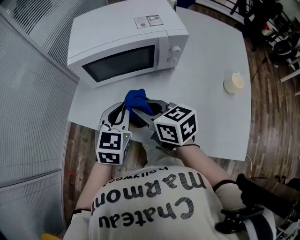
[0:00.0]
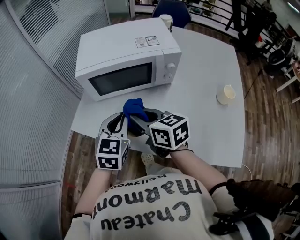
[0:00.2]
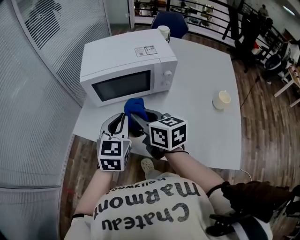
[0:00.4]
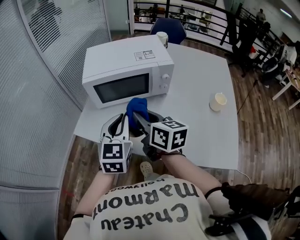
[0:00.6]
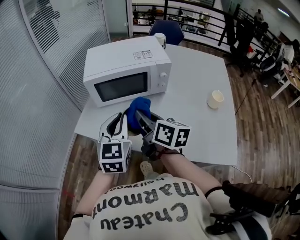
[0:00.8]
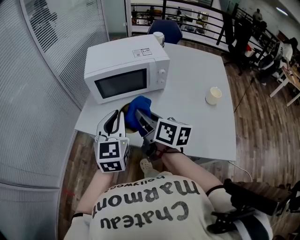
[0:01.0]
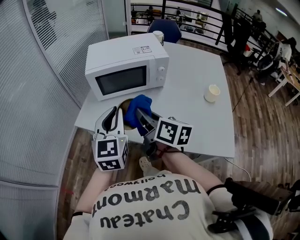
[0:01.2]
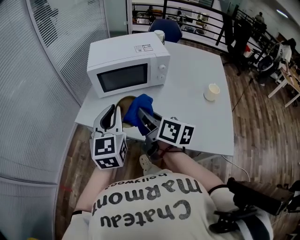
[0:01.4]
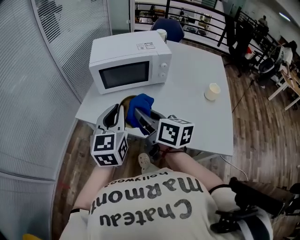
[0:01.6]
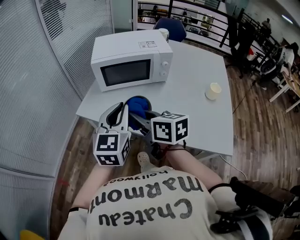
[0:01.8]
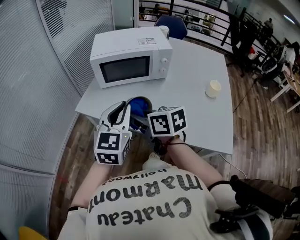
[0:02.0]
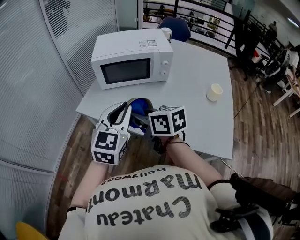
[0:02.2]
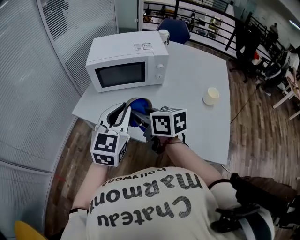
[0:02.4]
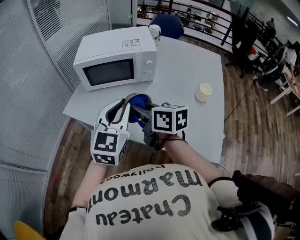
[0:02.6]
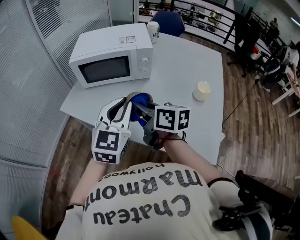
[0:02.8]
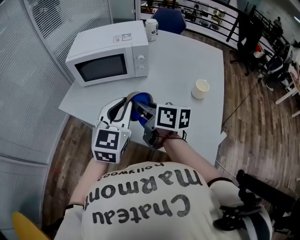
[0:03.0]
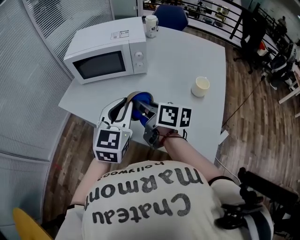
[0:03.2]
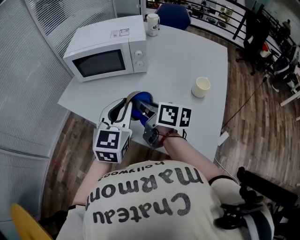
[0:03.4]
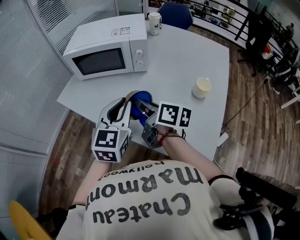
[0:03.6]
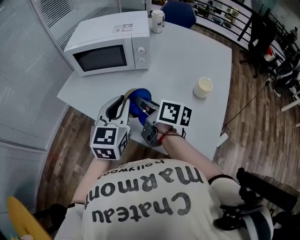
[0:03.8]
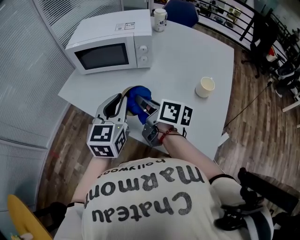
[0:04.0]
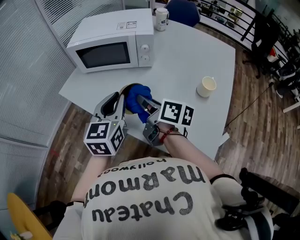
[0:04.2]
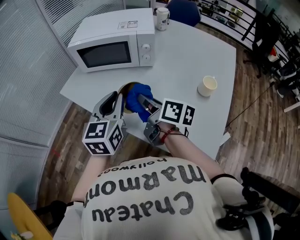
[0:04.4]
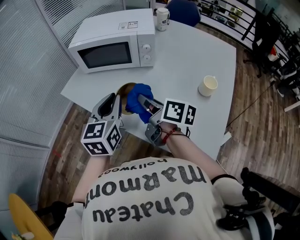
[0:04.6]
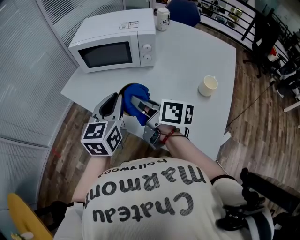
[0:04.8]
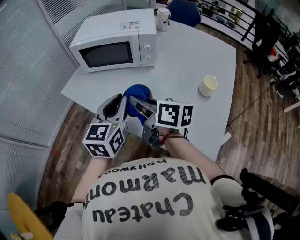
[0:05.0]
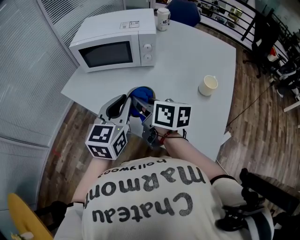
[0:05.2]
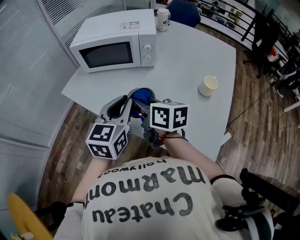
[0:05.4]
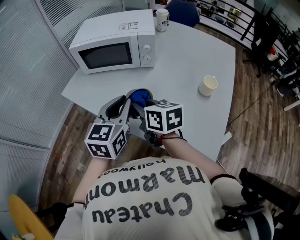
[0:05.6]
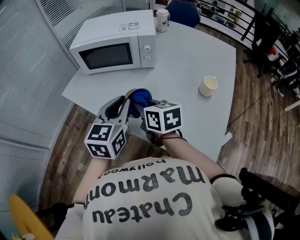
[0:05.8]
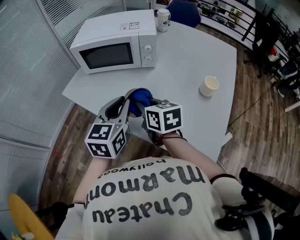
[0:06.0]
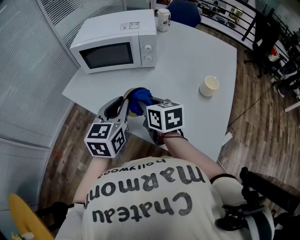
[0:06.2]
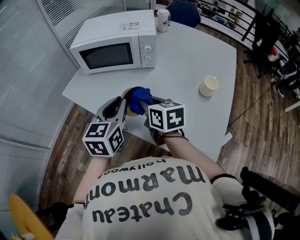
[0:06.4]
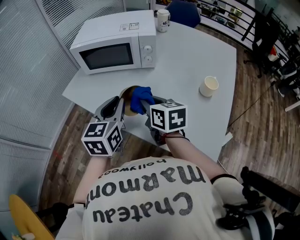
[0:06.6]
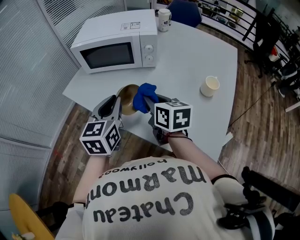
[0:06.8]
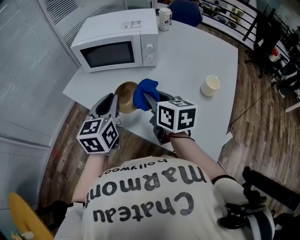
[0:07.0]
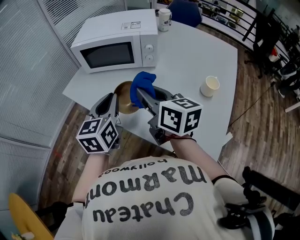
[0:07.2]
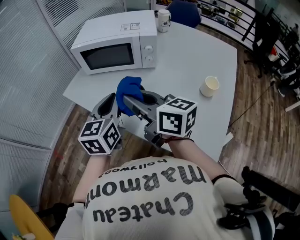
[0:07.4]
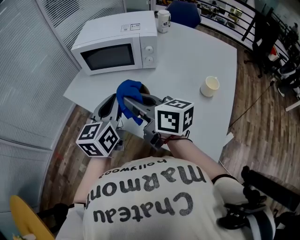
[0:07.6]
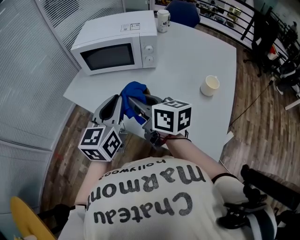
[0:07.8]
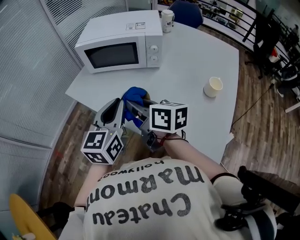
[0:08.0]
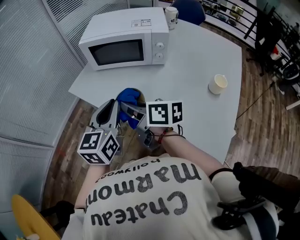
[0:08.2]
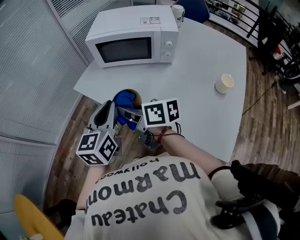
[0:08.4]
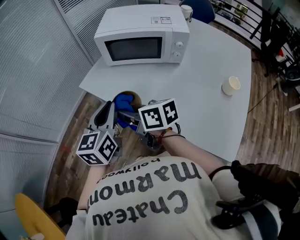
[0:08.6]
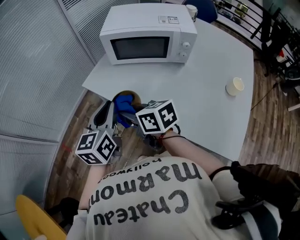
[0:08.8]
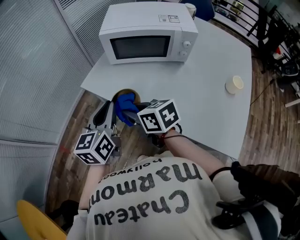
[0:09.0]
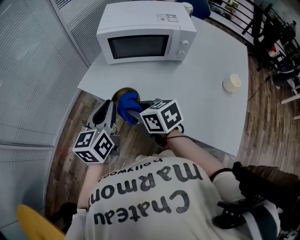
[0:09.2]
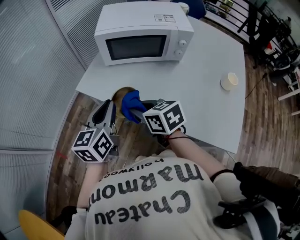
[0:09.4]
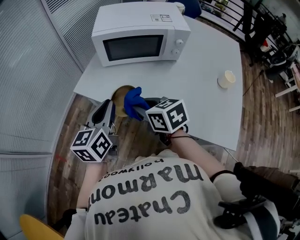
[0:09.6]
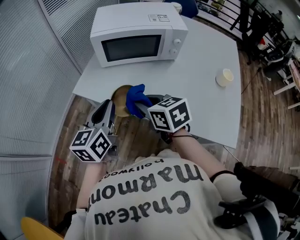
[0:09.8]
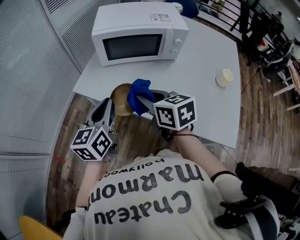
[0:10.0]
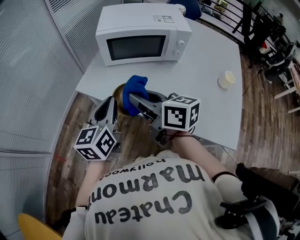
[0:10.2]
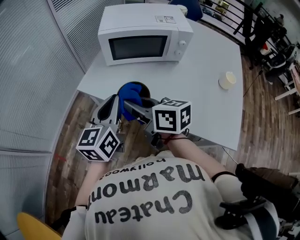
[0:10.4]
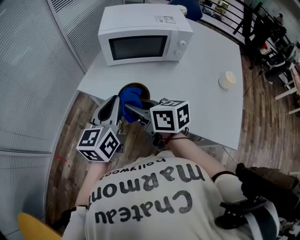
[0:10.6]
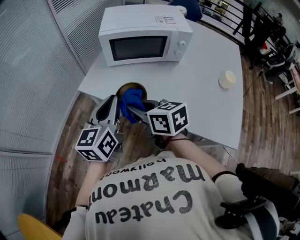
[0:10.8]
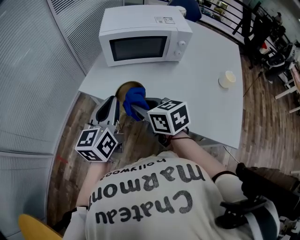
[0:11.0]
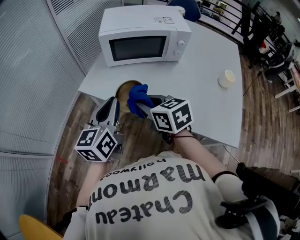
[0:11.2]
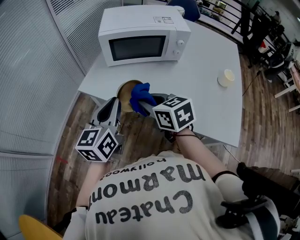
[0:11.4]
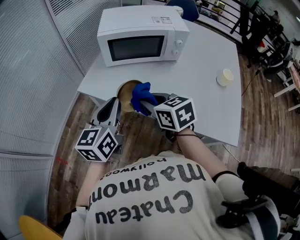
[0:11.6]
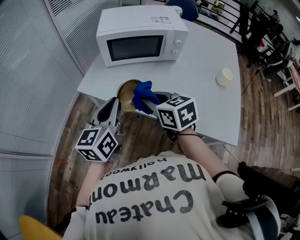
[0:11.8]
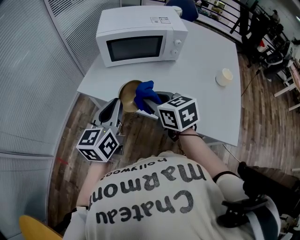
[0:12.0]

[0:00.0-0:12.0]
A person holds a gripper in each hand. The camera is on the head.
0.0 to 1.6 s: The left gripper goes roughly 15 cm upward and backward, and swivels roughly 20 degrees. The right gripper goes roughly 15 cm backward and upward, and changes its angle by about 20 degrees.
1.6 to 3.0 s: The grippers both shift to the right by roughly 15 cm.
3.0 to 4.4 s: The left gripper changes its angle by some 20 degrees, while the right gripper moves roughly 5 cm.
4.4 to 6.0 s: The right gripper changes its angle by some 40 degrees.
6.0 to 7.6 s: The right gripper is displaced upward by roughly 10 cm, and rotates about 30 degrees.
7.6 to 9.0 s: The left gripper travels to the left by roughly 20 cm; the right gripper goes some 20 cm to the left and downward, and turns by roughly 30 degrees.
9.0 to 10.4 s: The right gripper moves upward, approximately 5 cm, and turns by about 20 degrees.
10.4 to 12.0 s: The right gripper heads to the right, covering approximately 10 cm, and turns by about 30 degrees.

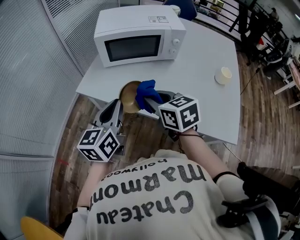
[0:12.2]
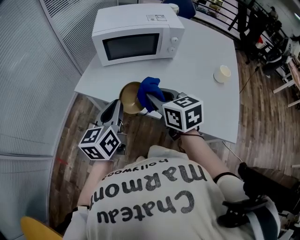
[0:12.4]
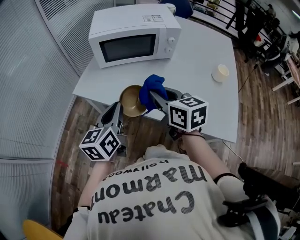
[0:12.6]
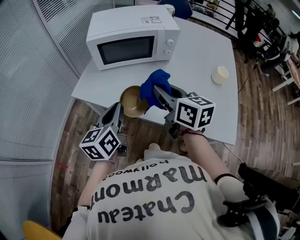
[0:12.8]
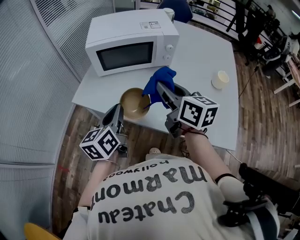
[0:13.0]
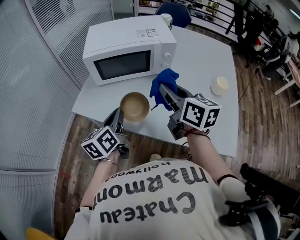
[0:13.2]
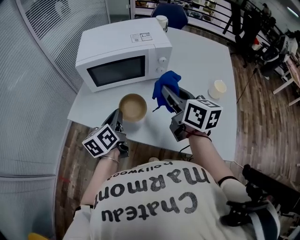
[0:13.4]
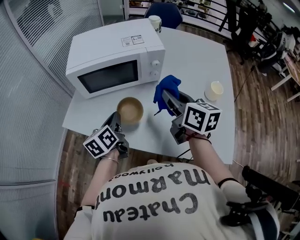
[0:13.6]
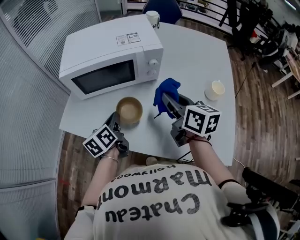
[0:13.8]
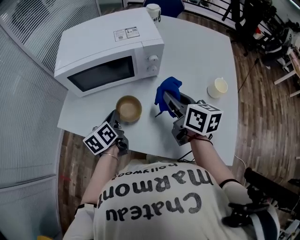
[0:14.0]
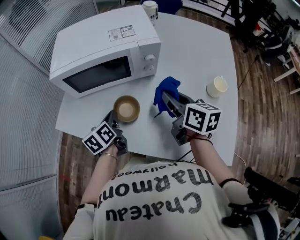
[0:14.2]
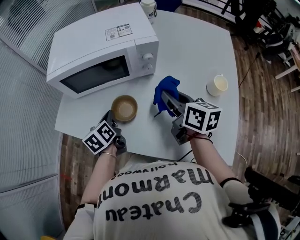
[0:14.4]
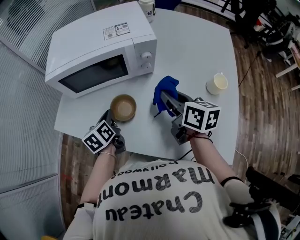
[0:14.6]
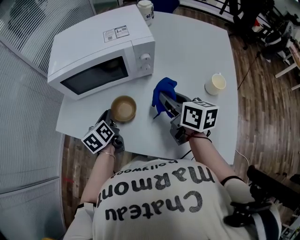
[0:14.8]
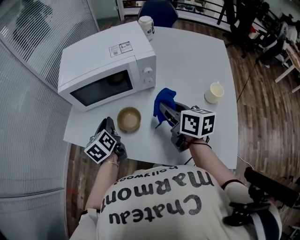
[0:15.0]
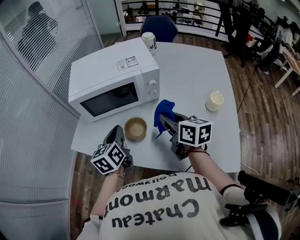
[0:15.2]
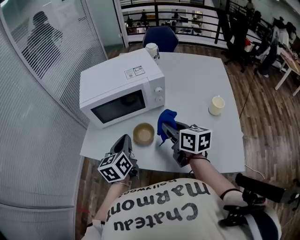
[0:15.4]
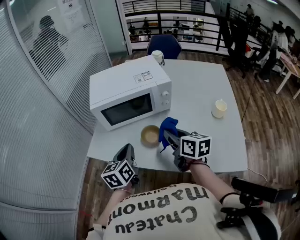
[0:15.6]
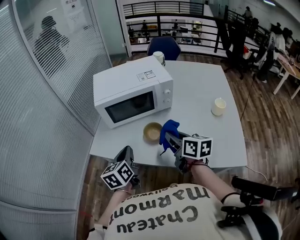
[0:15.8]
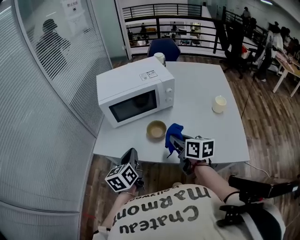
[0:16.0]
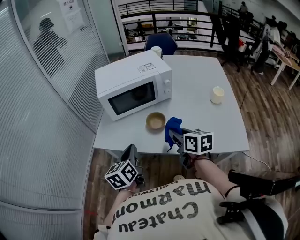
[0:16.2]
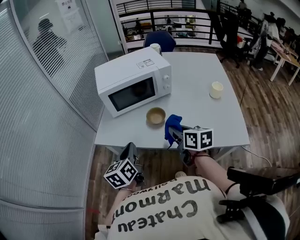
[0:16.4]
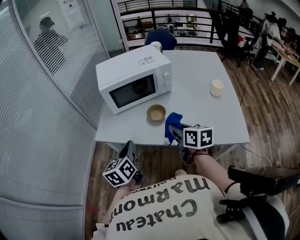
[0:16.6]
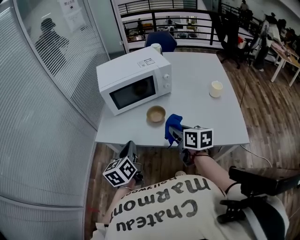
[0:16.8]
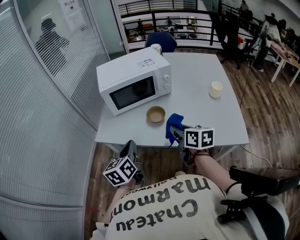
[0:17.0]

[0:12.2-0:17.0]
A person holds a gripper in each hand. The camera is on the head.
12.2 to 13.8 s: The right gripper heads to the right and forward, covering roughly 25 cm, and turns by some 30 degrees, while the left gripper shifts about 20 cm forward, downward and to the right, and changes its angle by roughly 30 degrees.
13.8 to 15.4 s: The left gripper travels upward by about 10 cm, and rotates approximately 20 degrees.
15.4 to 17.0 s: Both grippers travel together backward and to the left, approximately 15 cm.

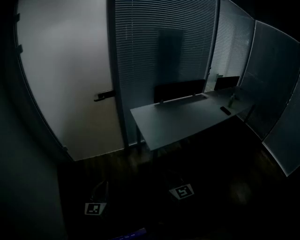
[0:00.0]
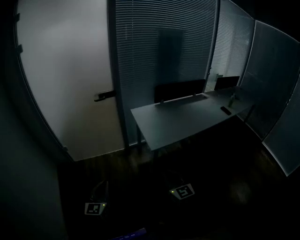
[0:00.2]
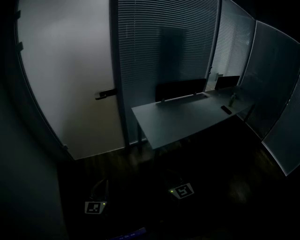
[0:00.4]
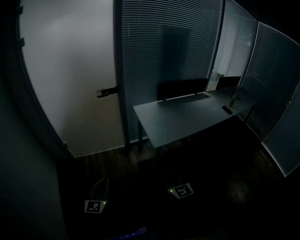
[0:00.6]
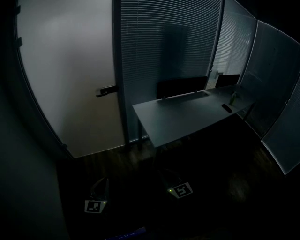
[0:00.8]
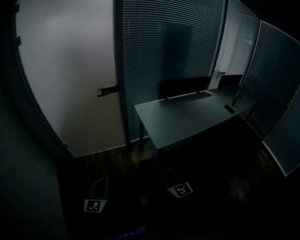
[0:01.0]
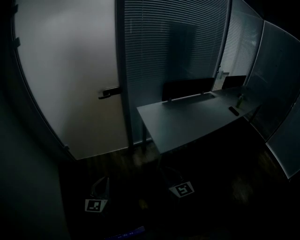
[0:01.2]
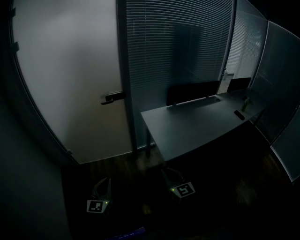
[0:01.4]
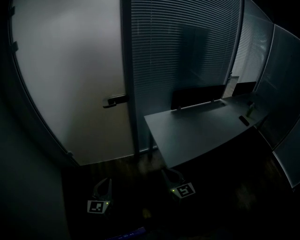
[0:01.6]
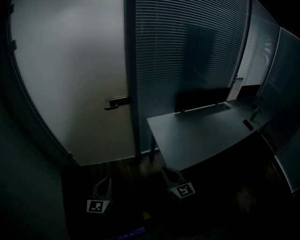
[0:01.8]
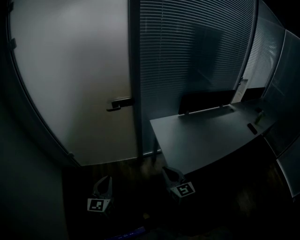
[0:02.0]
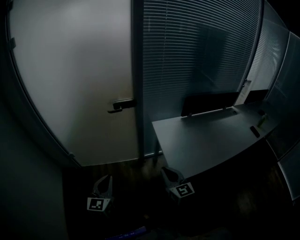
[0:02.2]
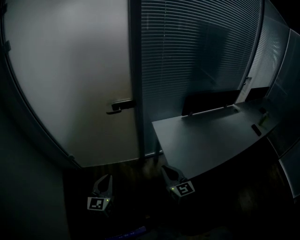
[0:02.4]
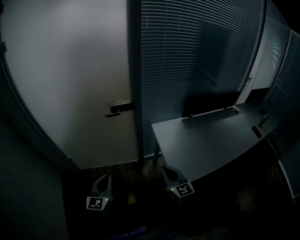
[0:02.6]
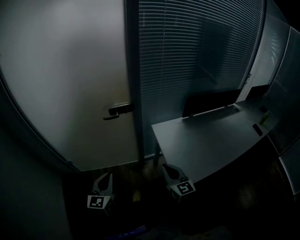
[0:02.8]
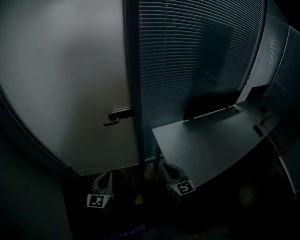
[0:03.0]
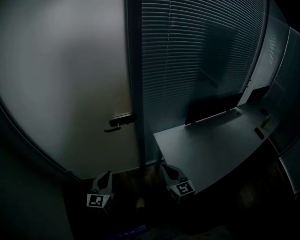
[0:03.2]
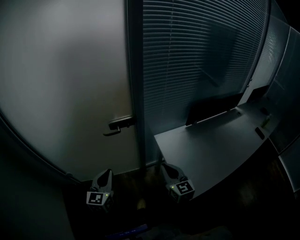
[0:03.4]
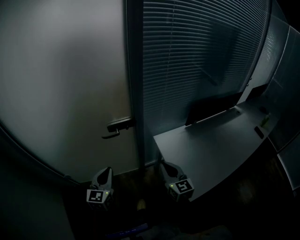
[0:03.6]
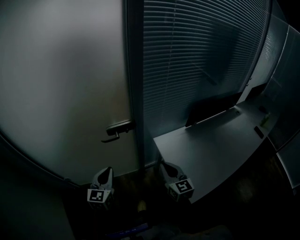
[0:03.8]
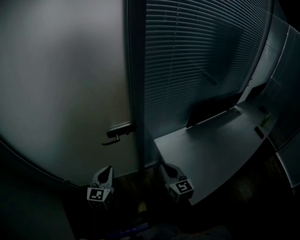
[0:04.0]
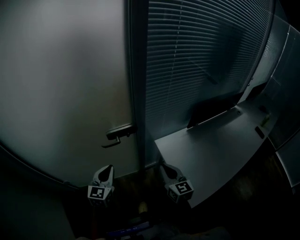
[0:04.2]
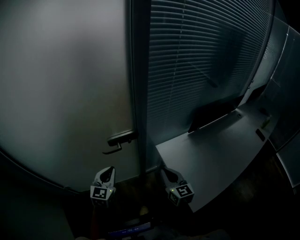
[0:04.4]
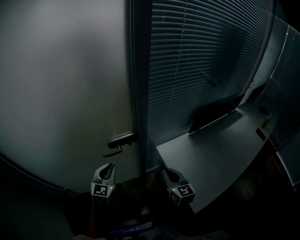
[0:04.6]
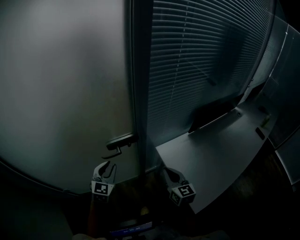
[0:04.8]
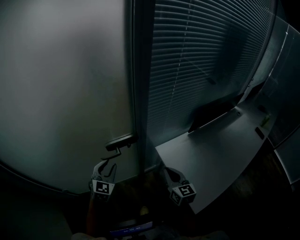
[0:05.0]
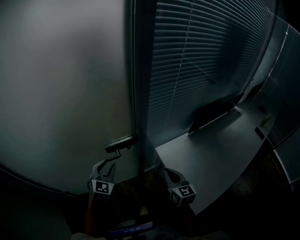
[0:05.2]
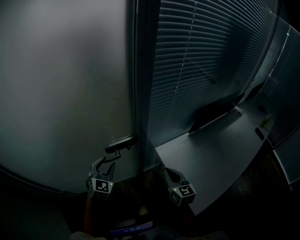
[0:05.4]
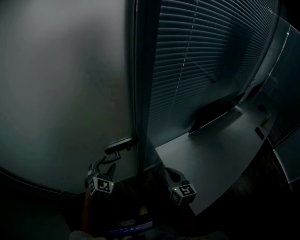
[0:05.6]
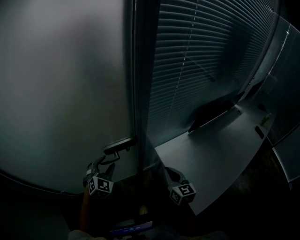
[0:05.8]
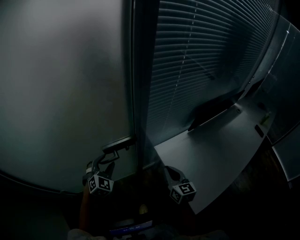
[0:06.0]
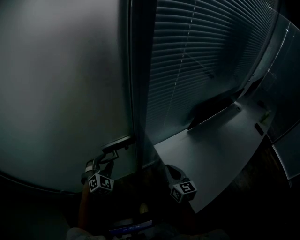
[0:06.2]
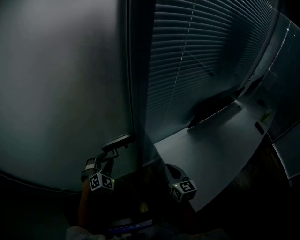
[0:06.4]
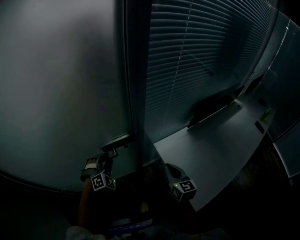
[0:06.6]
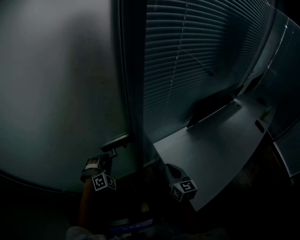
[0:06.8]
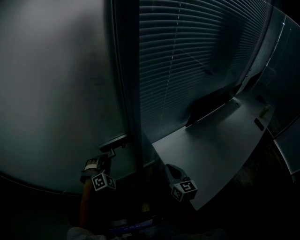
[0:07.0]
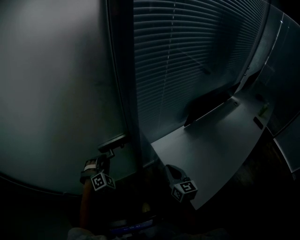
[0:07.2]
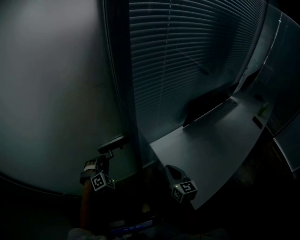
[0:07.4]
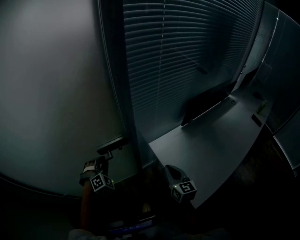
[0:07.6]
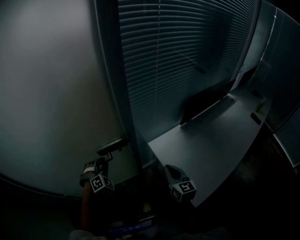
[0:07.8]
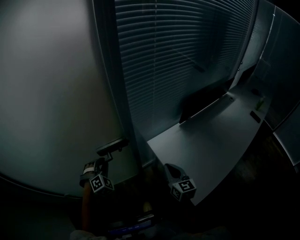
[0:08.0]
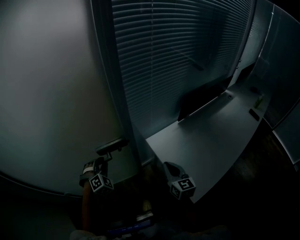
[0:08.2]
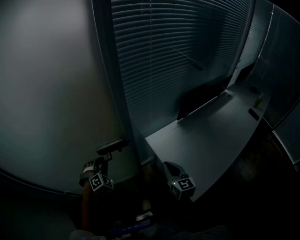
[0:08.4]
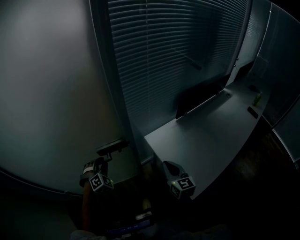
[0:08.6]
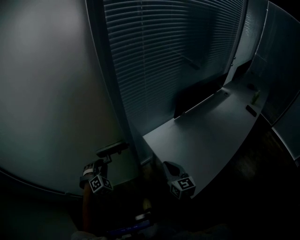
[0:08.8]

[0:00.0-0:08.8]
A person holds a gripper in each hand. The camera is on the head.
0.0 to 1.4 s: The right gripper heads forward and to the left, covering roughly 15 cm. The left gripper travels forward by some 15 cm.
1.4 to 3.0 s: The two grippers go some 30 cm forward.
3.0 to 4.4 s: Both grippers move forward, approximately 20 cm.
4.4 to 5.8 s: The left gripper shifts about 15 cm forward and downward, changes its angle by approximately 30 degrees, and opens. The right gripper goes about 5 cm forward.
5.8 to 7.4 s: The left gripper changes its angle by about 30 degrees, and closes up.
7.4 to 8.8 s: Both grippers travel together backward, roughly 5 cm.
